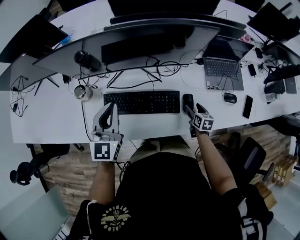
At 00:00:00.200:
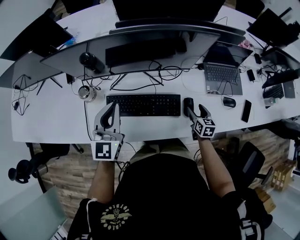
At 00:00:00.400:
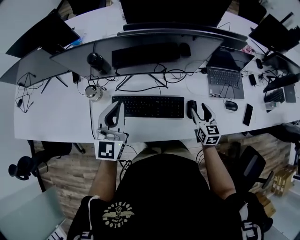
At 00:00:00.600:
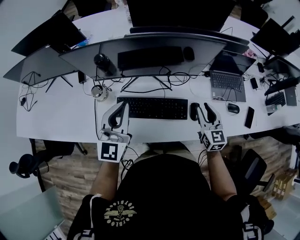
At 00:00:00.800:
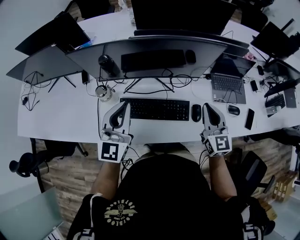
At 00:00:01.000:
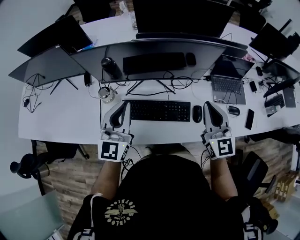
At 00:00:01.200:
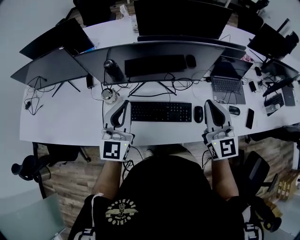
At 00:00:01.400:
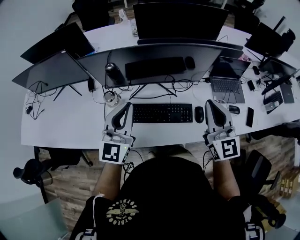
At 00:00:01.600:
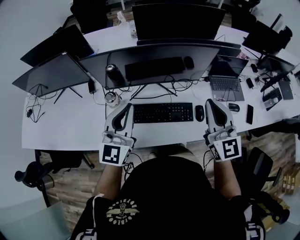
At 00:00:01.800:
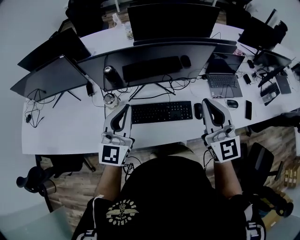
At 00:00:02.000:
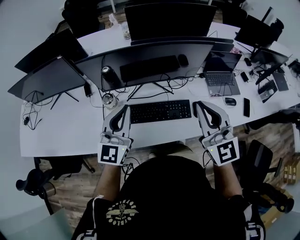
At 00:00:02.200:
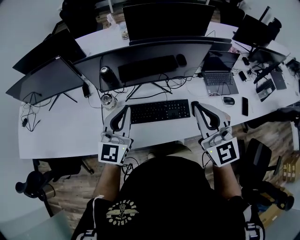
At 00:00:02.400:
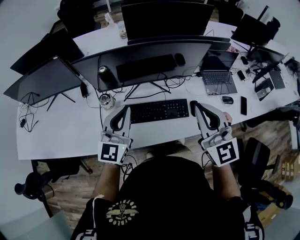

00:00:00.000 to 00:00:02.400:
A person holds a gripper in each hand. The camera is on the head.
00:00:00.000 to 00:00:01.200: The left gripper goes roughly 10 cm upward, while the right gripper heads upward, covering about 40 cm, points its fingers some 50 degrees further upward, and closes its fingers.
00:00:01.200 to 00:00:02.400: The right gripper is displaced backward and to the left by roughly 10 cm.

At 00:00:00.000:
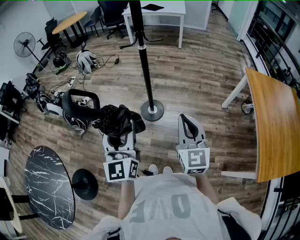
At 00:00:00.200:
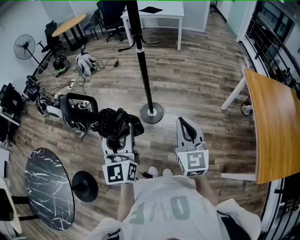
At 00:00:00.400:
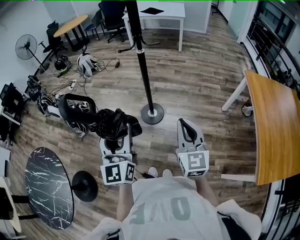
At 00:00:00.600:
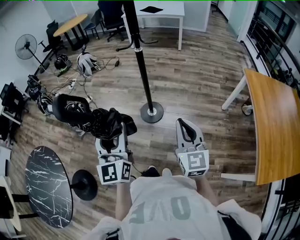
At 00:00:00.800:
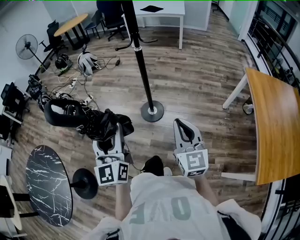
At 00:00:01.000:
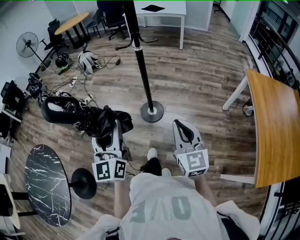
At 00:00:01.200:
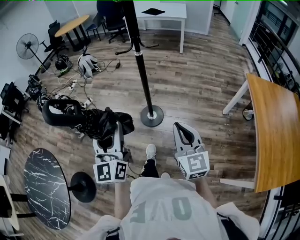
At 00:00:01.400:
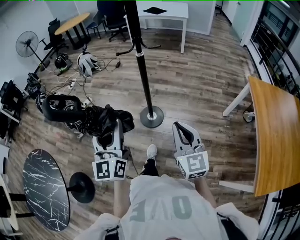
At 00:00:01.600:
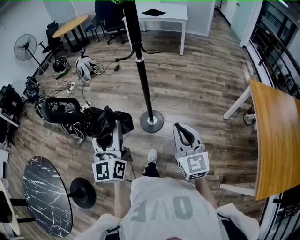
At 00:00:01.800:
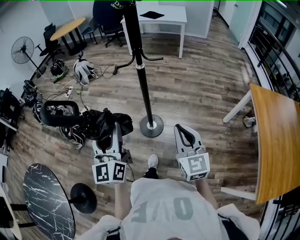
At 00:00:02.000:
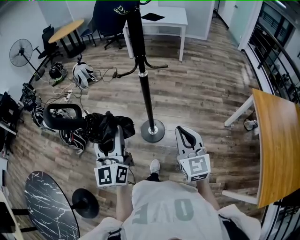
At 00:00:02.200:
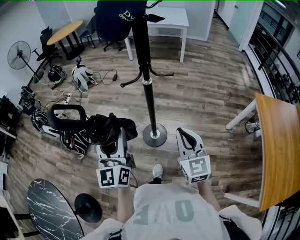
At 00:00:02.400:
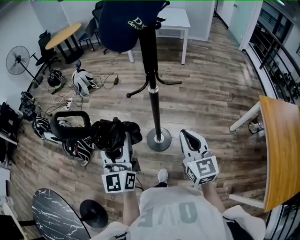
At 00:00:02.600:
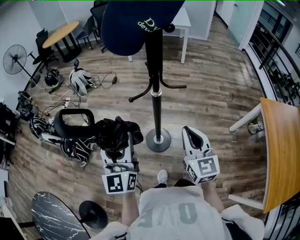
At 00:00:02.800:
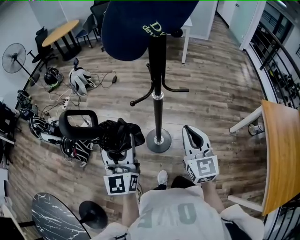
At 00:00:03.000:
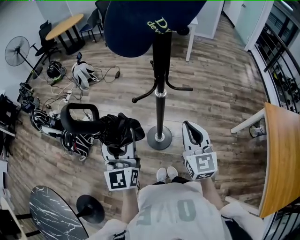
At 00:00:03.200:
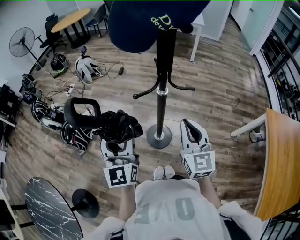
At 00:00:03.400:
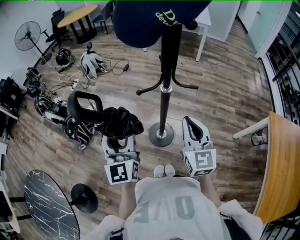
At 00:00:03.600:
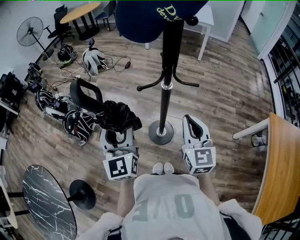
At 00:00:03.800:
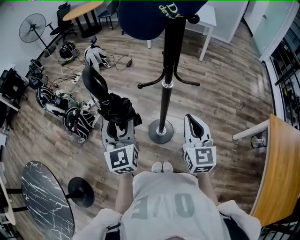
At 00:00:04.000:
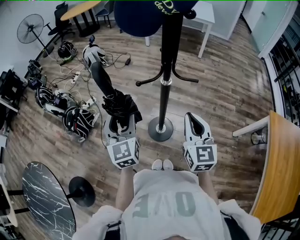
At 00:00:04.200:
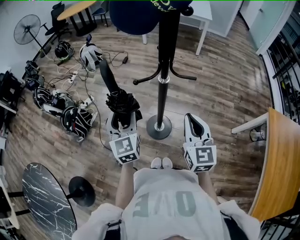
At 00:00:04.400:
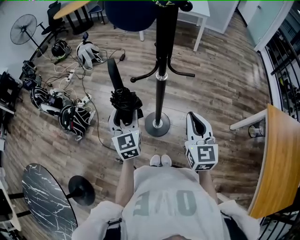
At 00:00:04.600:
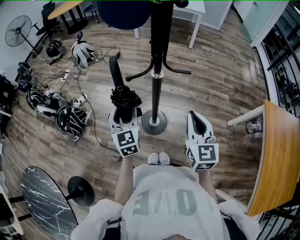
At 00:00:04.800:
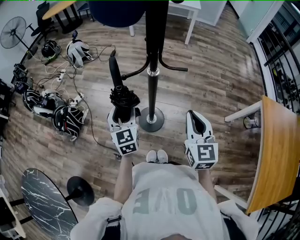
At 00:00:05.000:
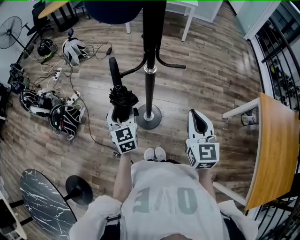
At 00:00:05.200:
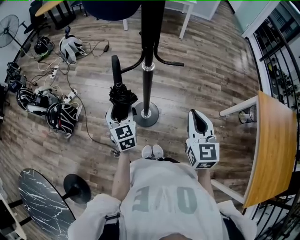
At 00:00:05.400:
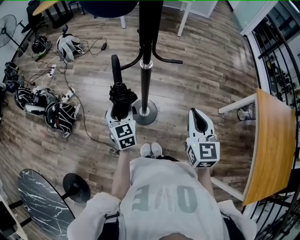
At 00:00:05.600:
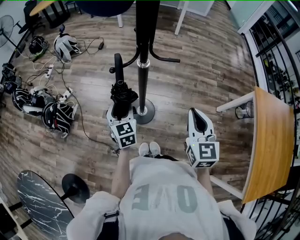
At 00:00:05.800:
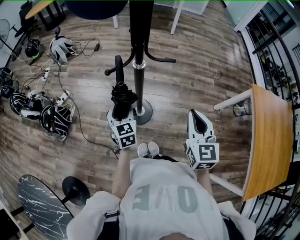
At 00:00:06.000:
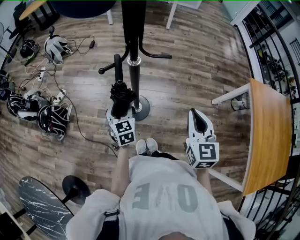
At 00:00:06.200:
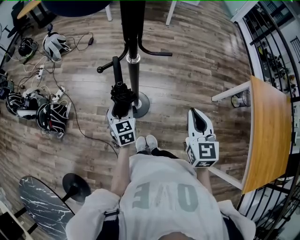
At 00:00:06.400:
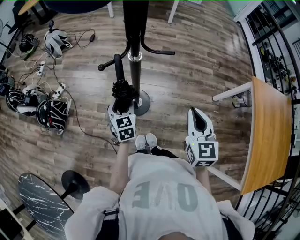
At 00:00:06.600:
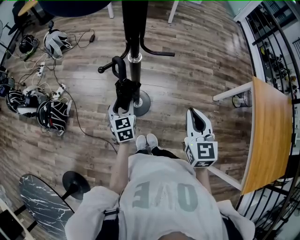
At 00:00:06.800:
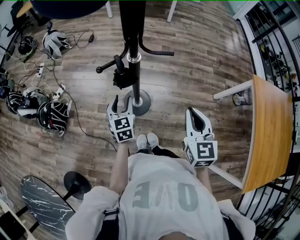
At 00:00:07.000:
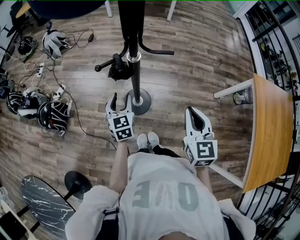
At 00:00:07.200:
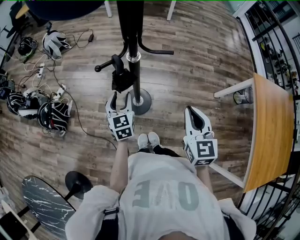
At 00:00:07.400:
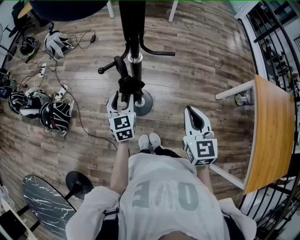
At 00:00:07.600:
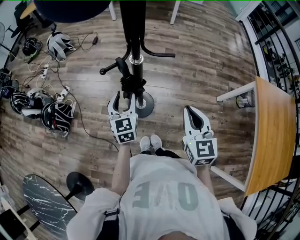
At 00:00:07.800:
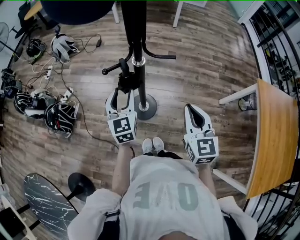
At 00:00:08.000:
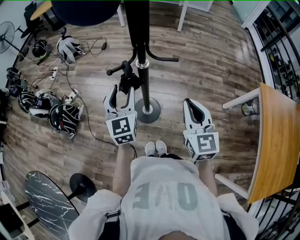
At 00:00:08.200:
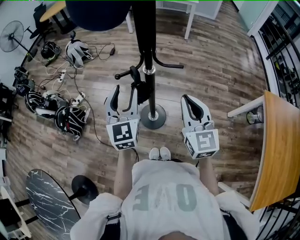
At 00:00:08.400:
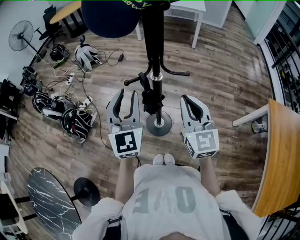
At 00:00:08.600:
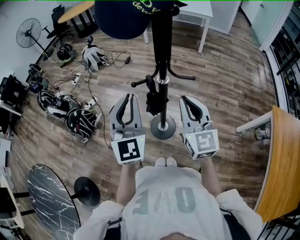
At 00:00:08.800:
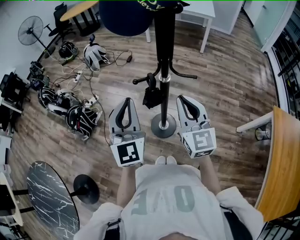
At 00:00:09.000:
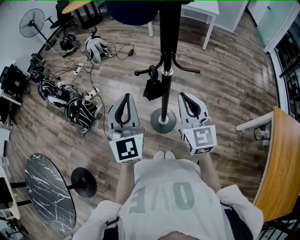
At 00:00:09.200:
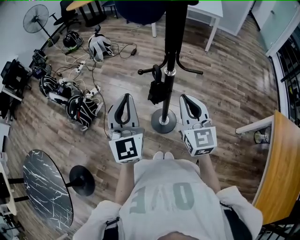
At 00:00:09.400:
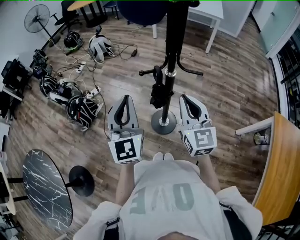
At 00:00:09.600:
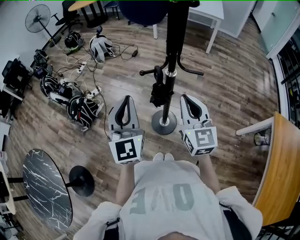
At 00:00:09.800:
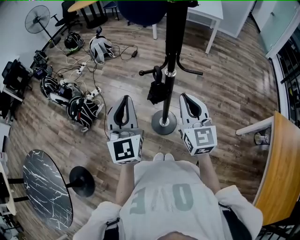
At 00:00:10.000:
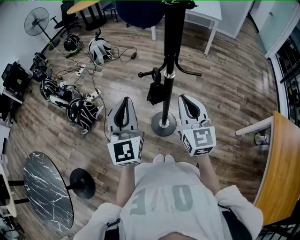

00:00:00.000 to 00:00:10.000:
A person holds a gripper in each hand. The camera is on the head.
00:00:00.000 to 00:00:01.400: The right gripper ends up roughly 5 cm from where it was. Meanwhile the left gripper is displaced forward by approximately 5 cm.
00:00:01.400 to 00:00:02.800: The grippers both shift forward by about 30 cm.
00:00:02.800 to 00:00:04.200: The left gripper moves downward, roughly 10 cm, and turns by approximately 20 degrees.
00:00:04.200 to 00:00:05.800: The right gripper is displaced to the right by about 10 cm, while the left gripper shifts roughly 15 cm downward and to the right, and turns by approximately 20 degrees.
00:00:05.800 to 00:00:07.200: The grippers stay close to where they were, moving slightly.
00:00:07.200 to 00:00:08.600: The left gripper travels upward by some 25 cm, points its fingers approximately 30 degrees further upward, and closes. The right gripper is displaced upward, to the left and forward by approximately 15 cm, and changes its angle by roughly 30 degrees.
00:00:08.600 to 00:00:10.000: The left gripper is displaced to the left by roughly 5 cm.

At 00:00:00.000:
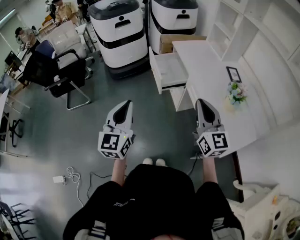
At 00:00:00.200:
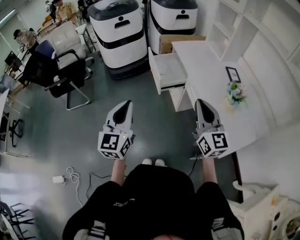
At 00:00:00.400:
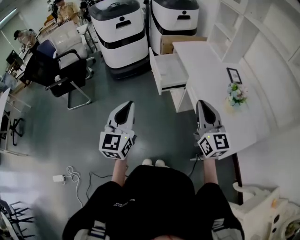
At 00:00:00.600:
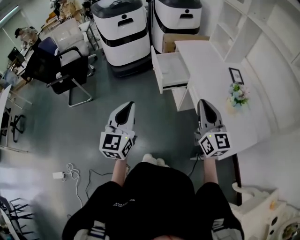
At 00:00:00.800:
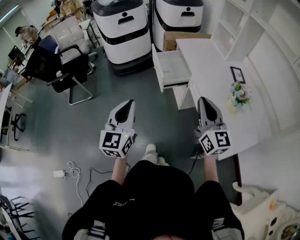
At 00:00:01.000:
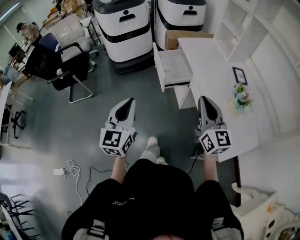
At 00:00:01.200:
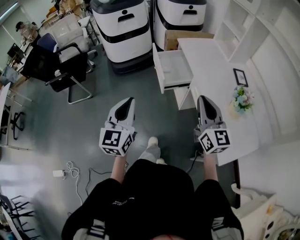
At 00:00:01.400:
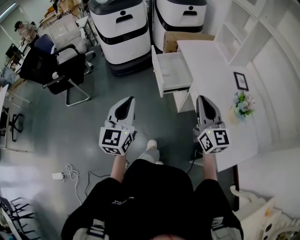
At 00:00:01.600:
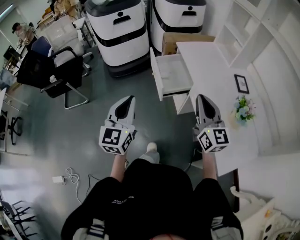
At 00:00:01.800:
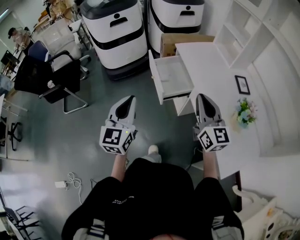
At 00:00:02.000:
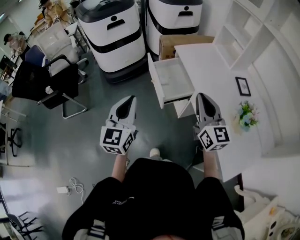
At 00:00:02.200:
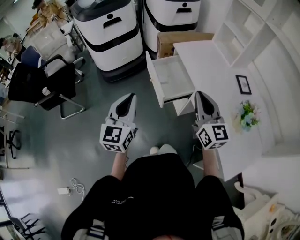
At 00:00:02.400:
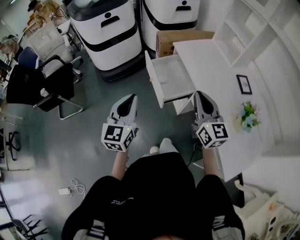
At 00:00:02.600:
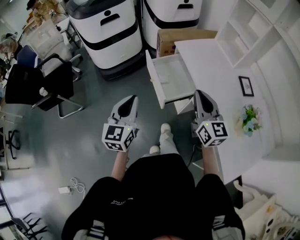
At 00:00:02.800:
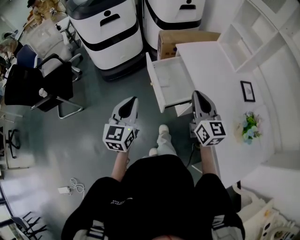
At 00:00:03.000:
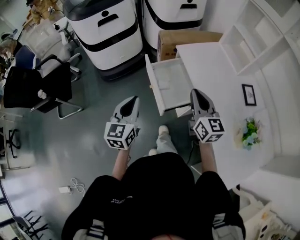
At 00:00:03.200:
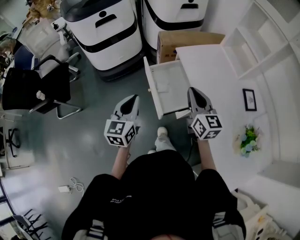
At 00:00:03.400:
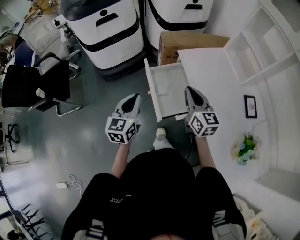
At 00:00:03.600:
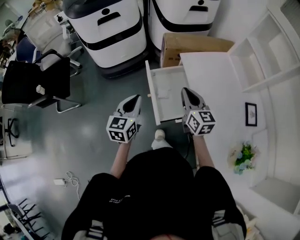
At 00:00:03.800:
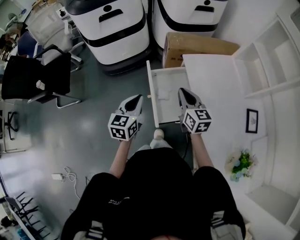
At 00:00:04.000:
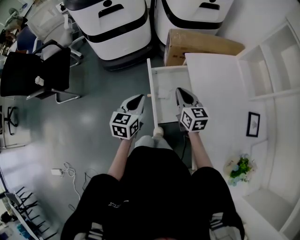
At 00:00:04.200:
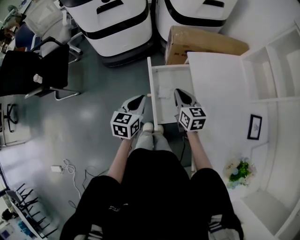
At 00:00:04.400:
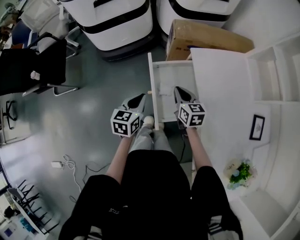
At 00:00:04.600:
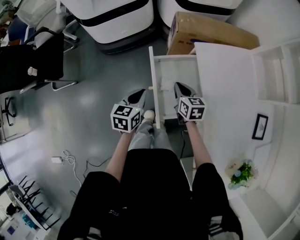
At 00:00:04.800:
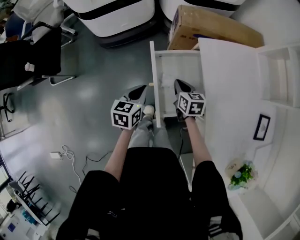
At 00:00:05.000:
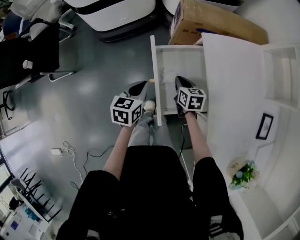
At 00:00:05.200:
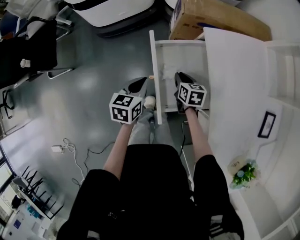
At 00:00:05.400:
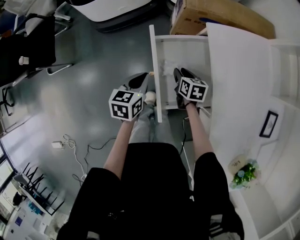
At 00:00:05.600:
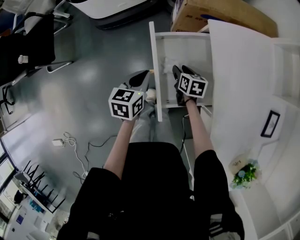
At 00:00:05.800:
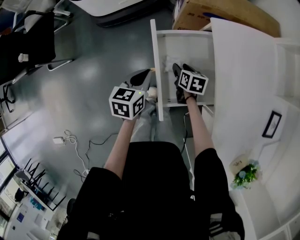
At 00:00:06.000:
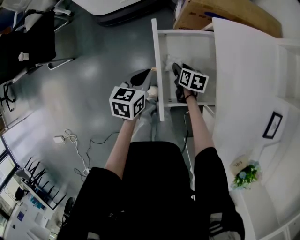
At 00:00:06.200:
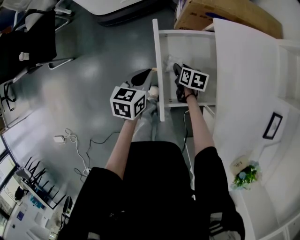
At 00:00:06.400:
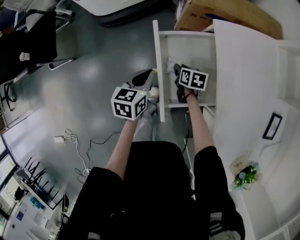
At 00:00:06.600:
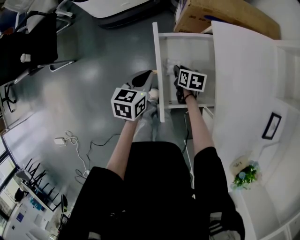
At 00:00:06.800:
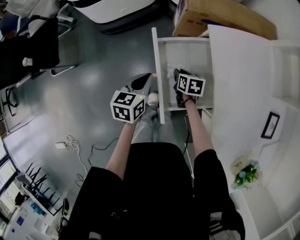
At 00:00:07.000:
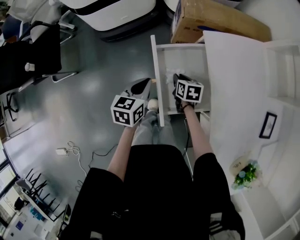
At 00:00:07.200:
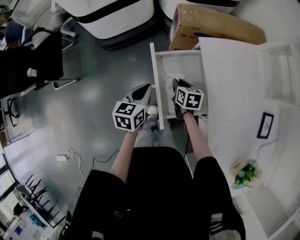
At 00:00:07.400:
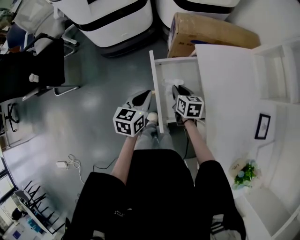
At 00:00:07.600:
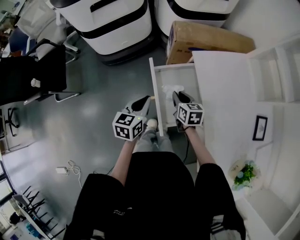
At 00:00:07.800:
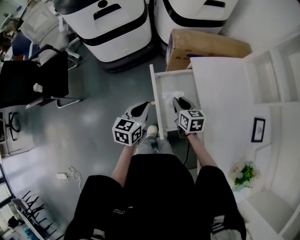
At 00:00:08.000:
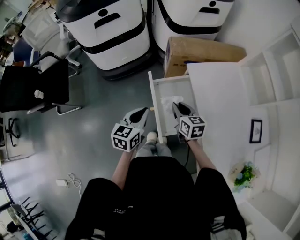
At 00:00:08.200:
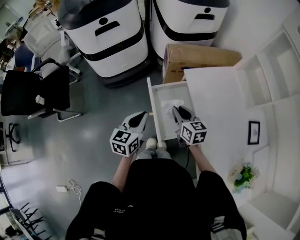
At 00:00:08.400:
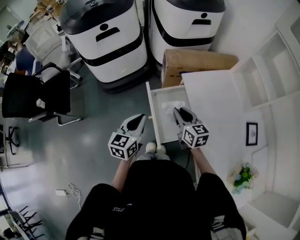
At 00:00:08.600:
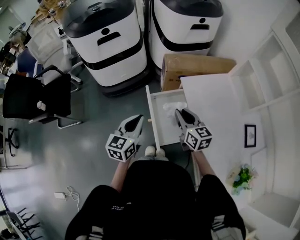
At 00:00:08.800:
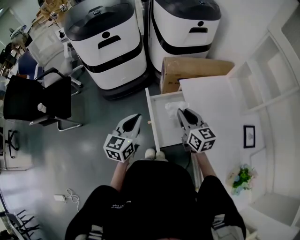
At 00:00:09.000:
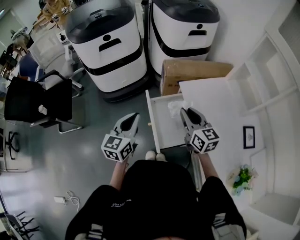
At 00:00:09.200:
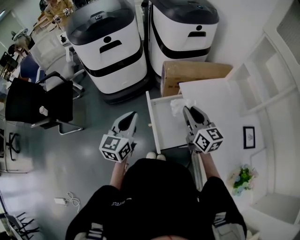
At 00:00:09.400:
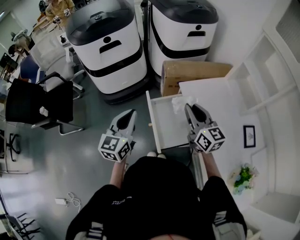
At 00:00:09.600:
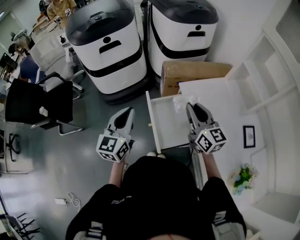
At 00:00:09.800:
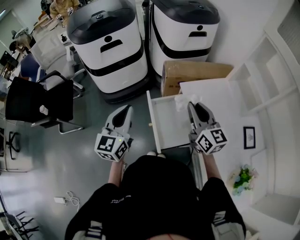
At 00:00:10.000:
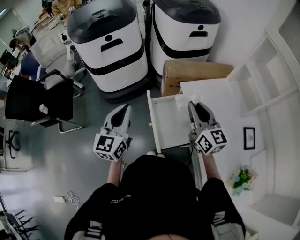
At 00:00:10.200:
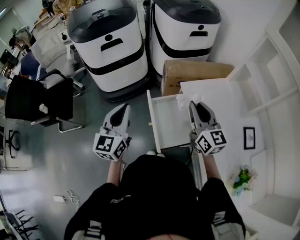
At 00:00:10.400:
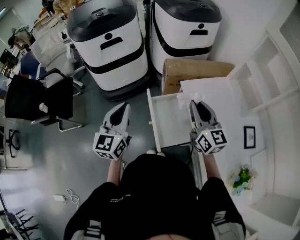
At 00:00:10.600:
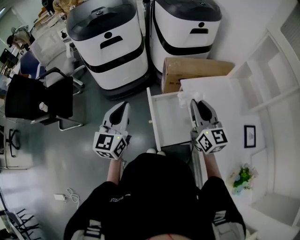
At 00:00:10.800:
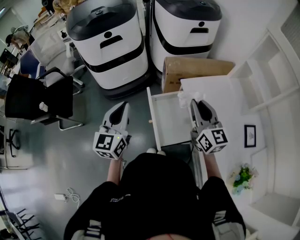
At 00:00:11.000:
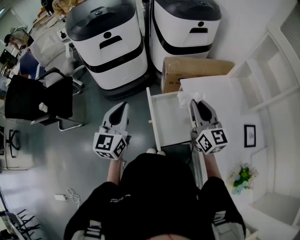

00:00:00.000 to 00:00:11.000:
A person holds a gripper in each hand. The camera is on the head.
00:00:00.000 to 00:00:01.600: The two grippers go some 15 cm forward.
00:00:01.600 to 00:00:03.200: The left gripper goes some 30 cm forward and downward; the right gripper is displaced forward by roughly 25 cm.
00:00:03.200 to 00:00:04.800: Both grippers move downward and forward, about 30 cm. The right gripper points its fingers approximately 30 degrees further downward; the left gripper changes its angle by approximately 30 degrees.
00:00:04.800 to 00:00:06.200: The right gripper moves downward, approximately 10 cm, turns by about 20 degrees, and opens.
00:00:06.200 to 00:00:07.800: The left gripper heads upward, covering roughly 10 cm. Meanwhile the right gripper heads upward, covering about 20 cm, turns by roughly 30 degrees, and closes its fingers.
00:00:07.800 to 00:00:09.400: Both grippers move upward, approximately 20 cm. The right gripper tilts its fingers approximately 30 degrees upward; the left gripper swivels roughly 20 degrees.
00:00:09.400 to 00:00:11.000: The grippers move only a little.
